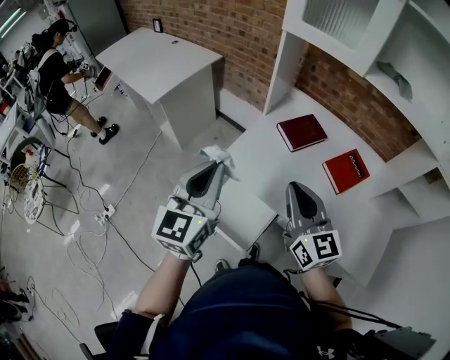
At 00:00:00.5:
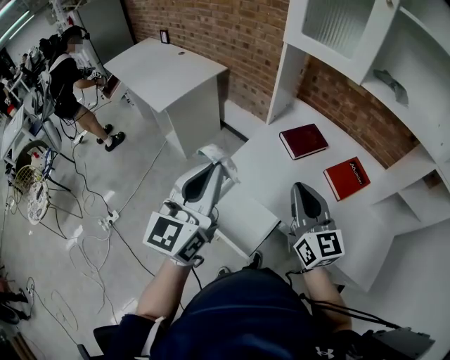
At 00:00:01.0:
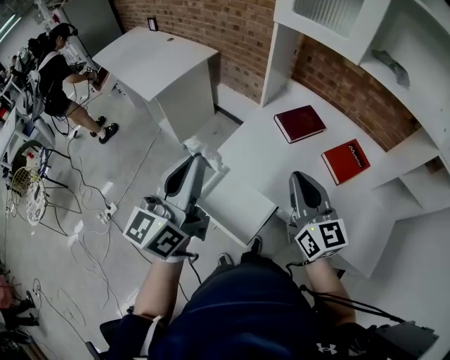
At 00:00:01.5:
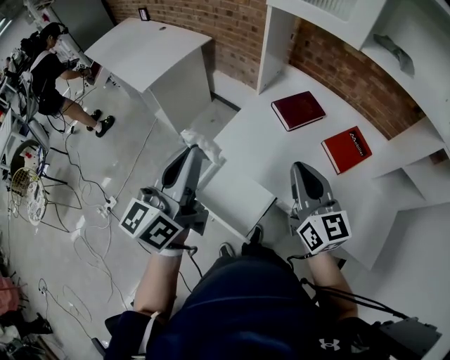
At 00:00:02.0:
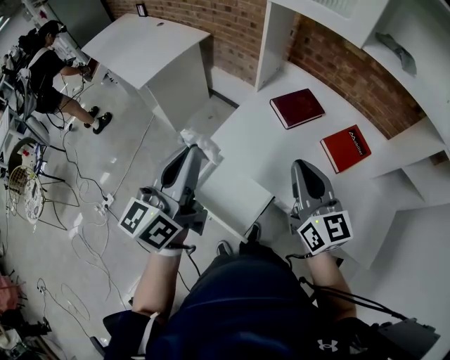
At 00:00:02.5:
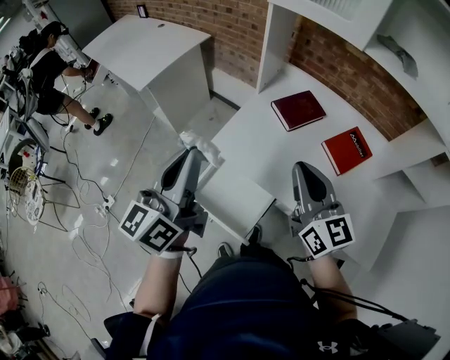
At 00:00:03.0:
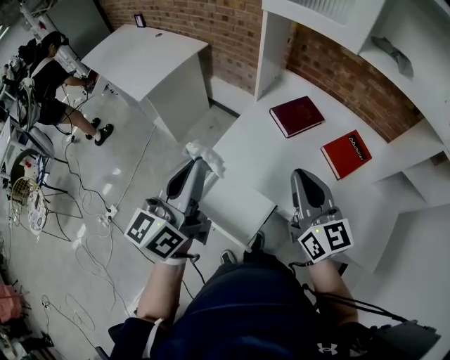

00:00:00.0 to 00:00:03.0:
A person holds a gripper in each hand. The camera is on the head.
00:00:00.0 to 00:00:01.5: The left gripper turns by roughly 30 degrees.
00:00:01.5 to 00:00:03.0: The grippers make only small movements.

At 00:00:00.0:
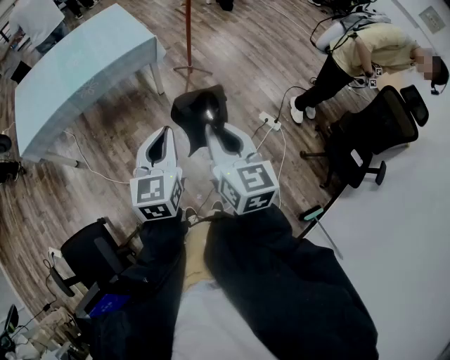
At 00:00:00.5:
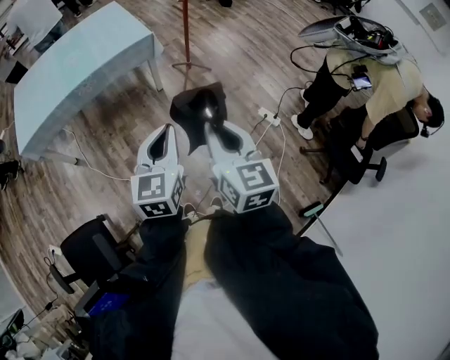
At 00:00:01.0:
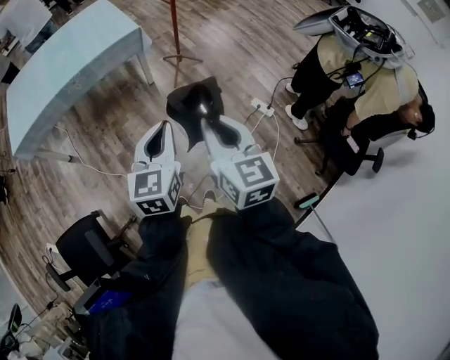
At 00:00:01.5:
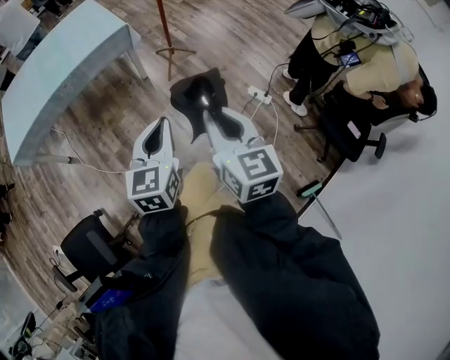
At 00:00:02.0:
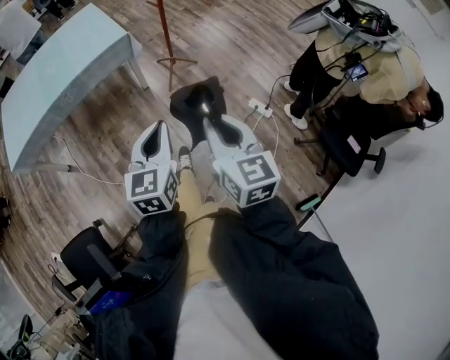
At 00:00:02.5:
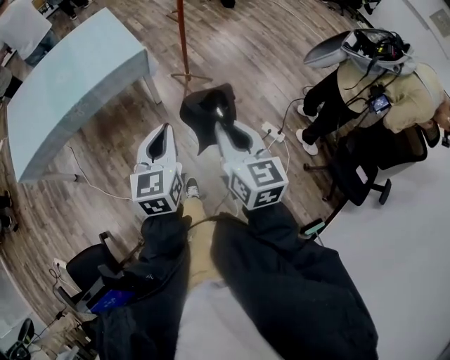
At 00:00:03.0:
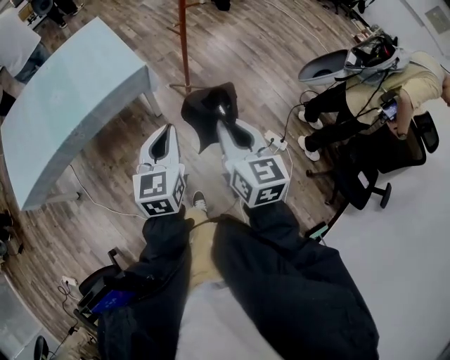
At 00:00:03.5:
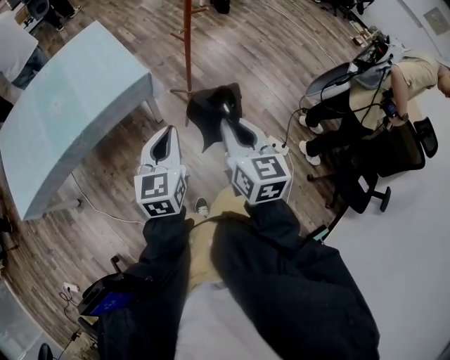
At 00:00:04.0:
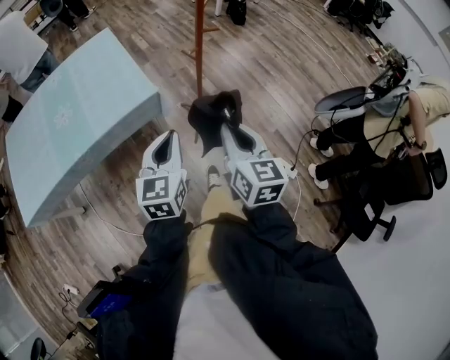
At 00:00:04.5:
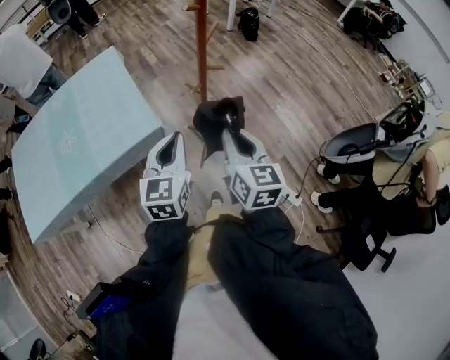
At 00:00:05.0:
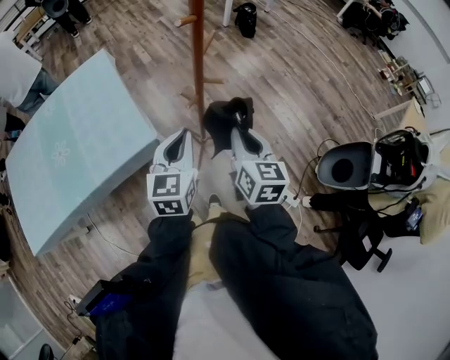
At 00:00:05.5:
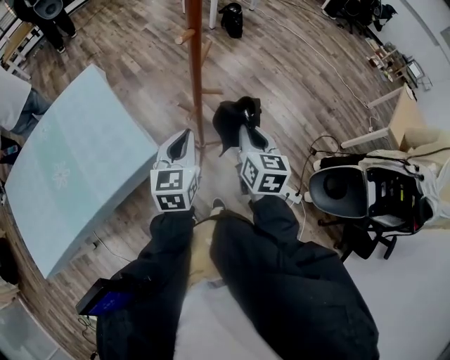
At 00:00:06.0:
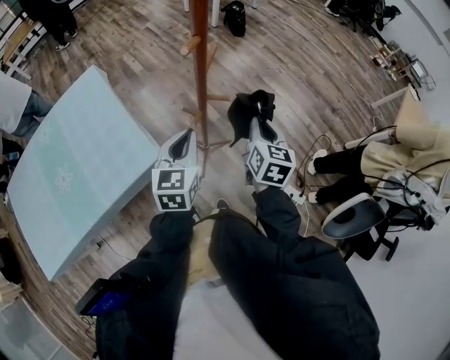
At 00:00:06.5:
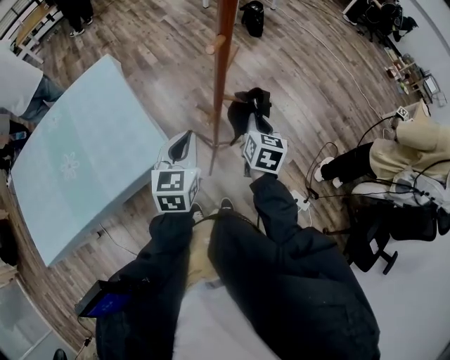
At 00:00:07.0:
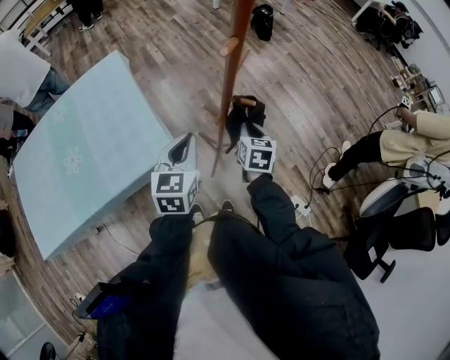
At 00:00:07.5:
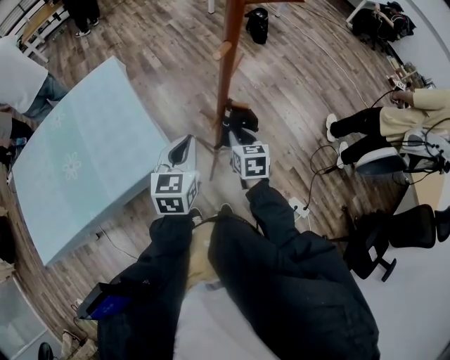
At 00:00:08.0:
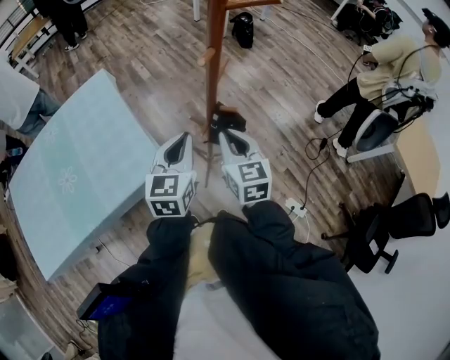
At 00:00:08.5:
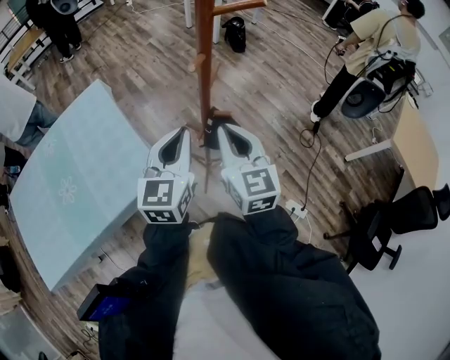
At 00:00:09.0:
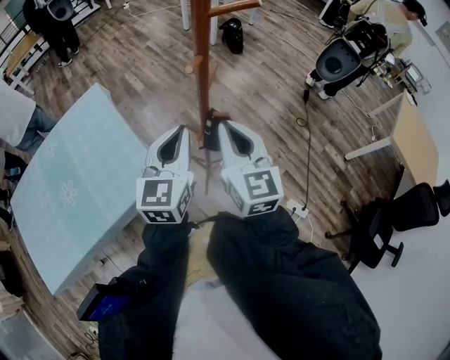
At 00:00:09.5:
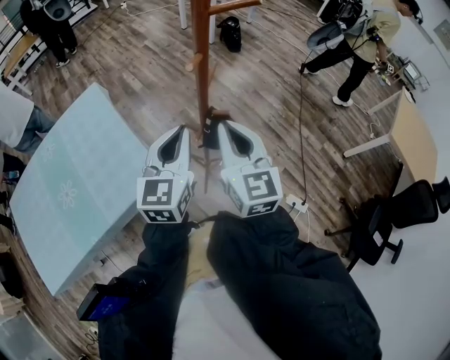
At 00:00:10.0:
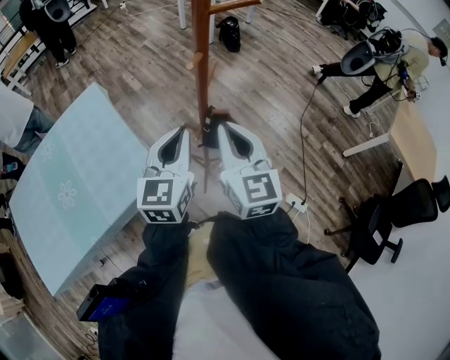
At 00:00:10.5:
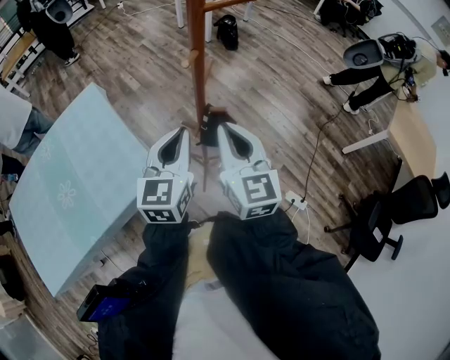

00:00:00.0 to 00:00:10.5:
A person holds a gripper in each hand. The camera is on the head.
00:00:00.0 to 00:00:02.0: The grippers both shift to the right by approximately 10 cm.
00:00:02.0 to 00:00:04.0: The two grippers travel together, forward, approximately 40 cm.
00:00:04.0 to 00:00:06.5: Both grippers travel together forward, some 35 cm. The right gripper rotates some 20 degrees.
00:00:06.5 to 00:00:08.5: The left gripper is displaced upward by some 10 cm, while the right gripper moves upward, to the left and backward, approximately 20 cm, and changes its angle by roughly 30 degrees.
00:00:08.5 to 00:00:10.5: The grippers move only a little.

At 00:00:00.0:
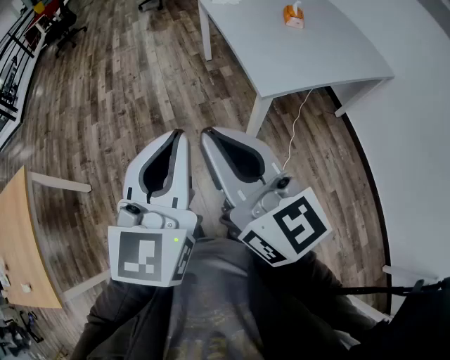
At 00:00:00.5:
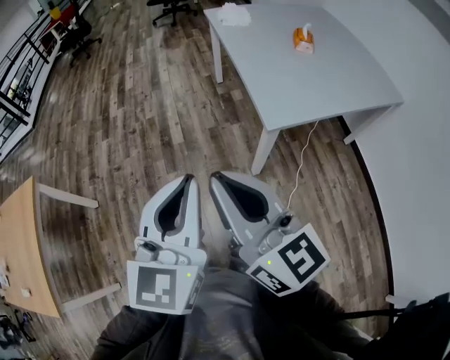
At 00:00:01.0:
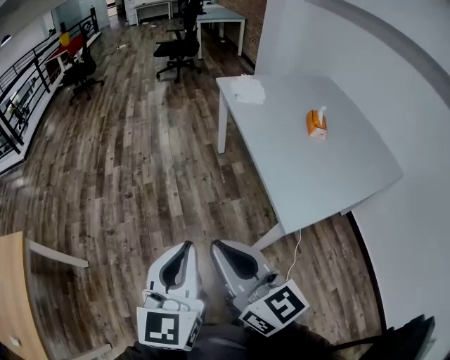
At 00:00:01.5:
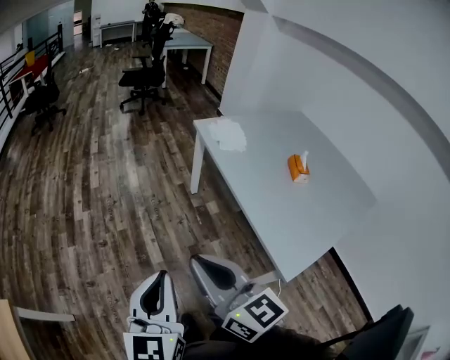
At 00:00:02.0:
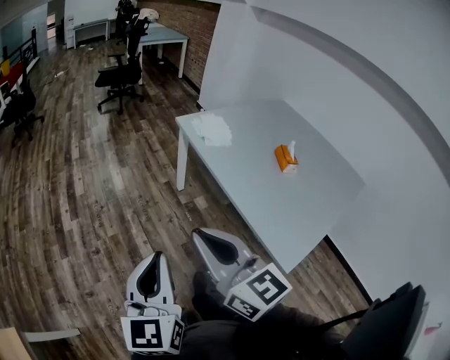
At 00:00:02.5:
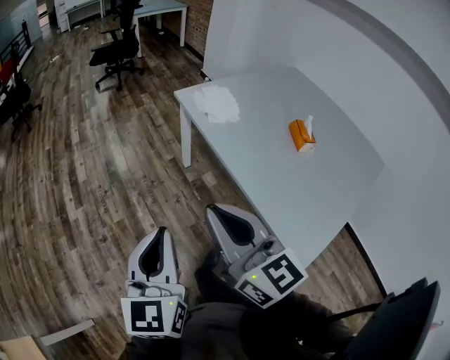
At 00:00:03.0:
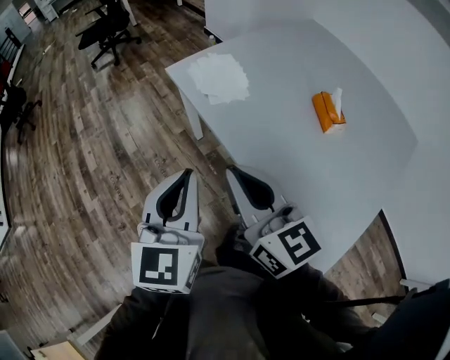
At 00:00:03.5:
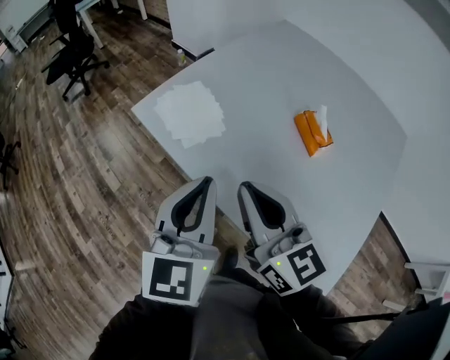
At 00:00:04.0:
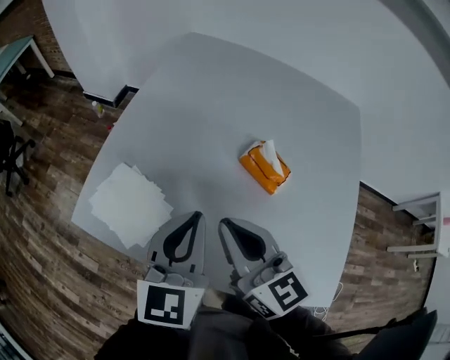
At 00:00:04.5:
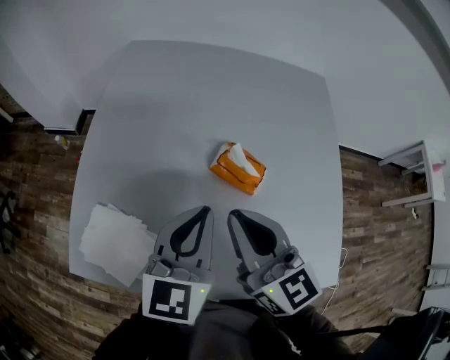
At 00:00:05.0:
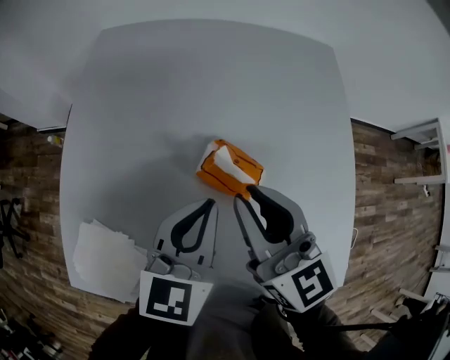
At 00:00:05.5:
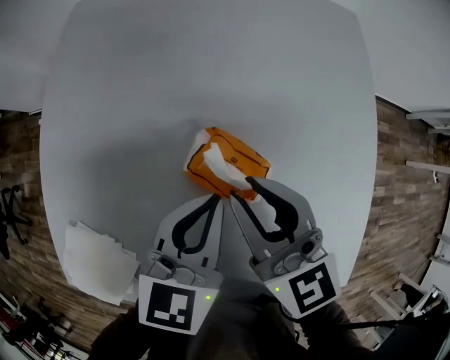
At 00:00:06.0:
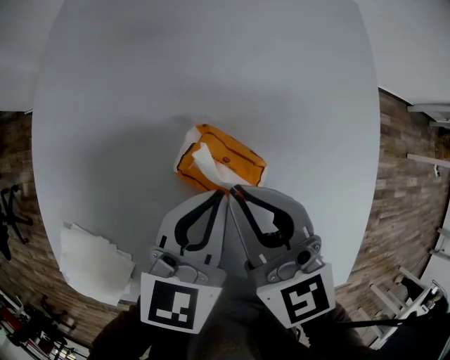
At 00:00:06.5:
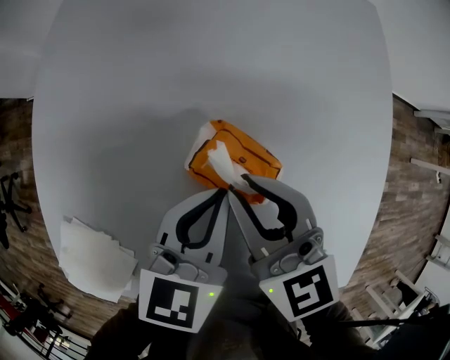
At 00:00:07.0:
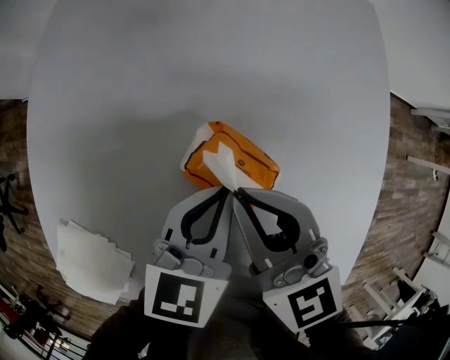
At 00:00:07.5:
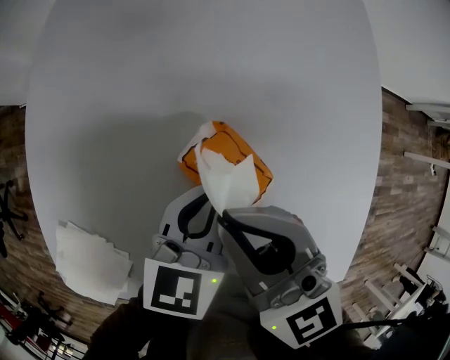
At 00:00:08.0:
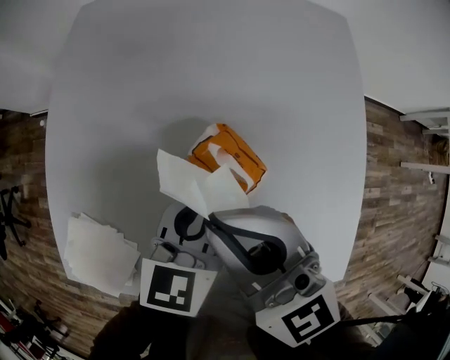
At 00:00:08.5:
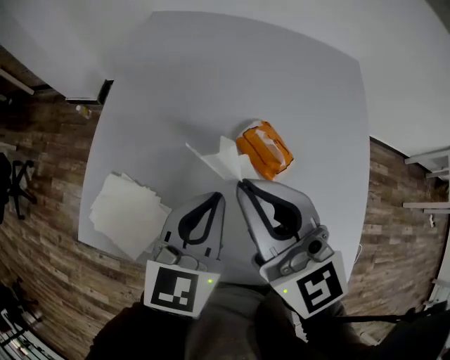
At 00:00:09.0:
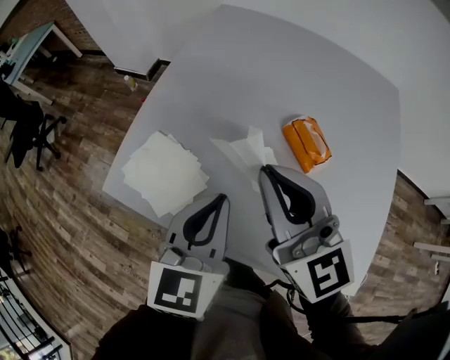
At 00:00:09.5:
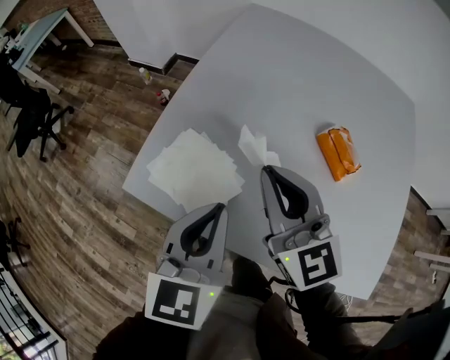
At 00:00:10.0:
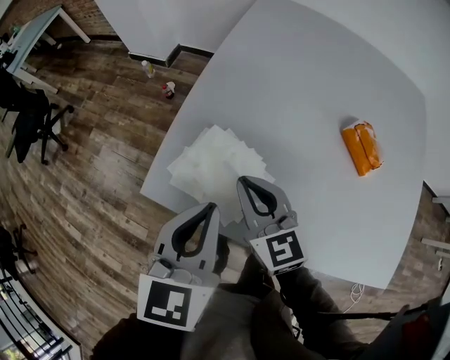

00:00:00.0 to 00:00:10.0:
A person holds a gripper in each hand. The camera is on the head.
00:00:00.0 to 00:00:02.0: The pair of grippers is taken forward, some 50 cm.
00:00:02.0 to 00:00:04.0: The pair of grippers is taken roughly 70 cm. The right gripper turns by some 50 degrees; the left gripper turns by approximately 60 degrees.
00:00:04.0 to 00:00:06.0: The right gripper shifts about 30 cm forward, to the right and downward, and turns by some 20 degrees, while the left gripper moves to the right, forward and downward, roughly 30 cm, and changes its angle by some 30 degrees.
00:00:06.0 to 00:00:08.0: The right gripper goes roughly 15 cm upward, to the left and backward.
00:00:08.0 to 00:00:10.0: The two grippers go roughly 40 cm to the left. The left gripper rotates about 20 degrees.

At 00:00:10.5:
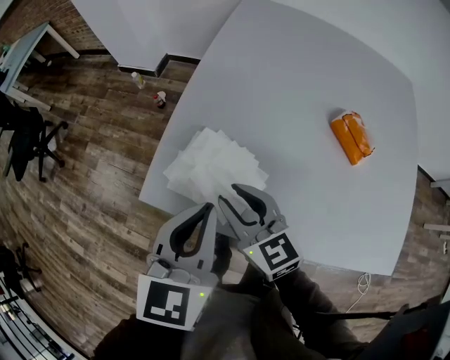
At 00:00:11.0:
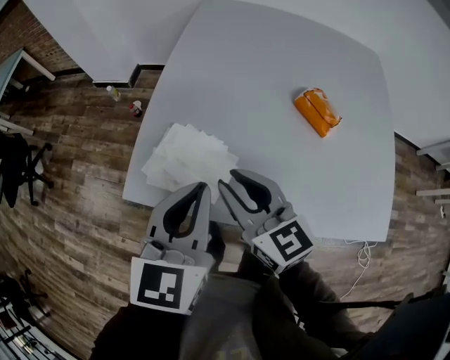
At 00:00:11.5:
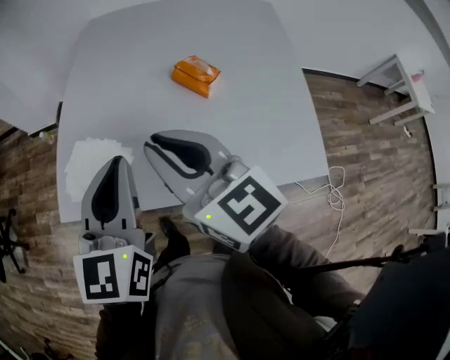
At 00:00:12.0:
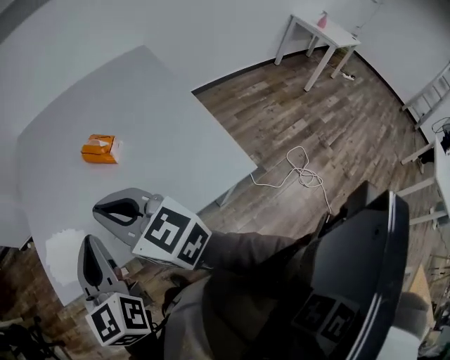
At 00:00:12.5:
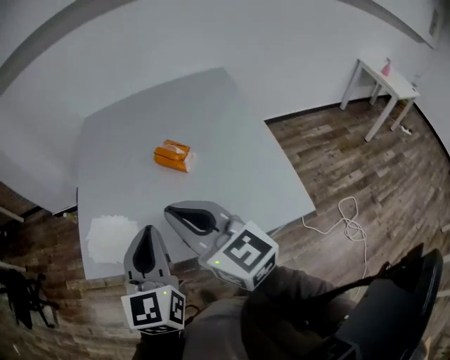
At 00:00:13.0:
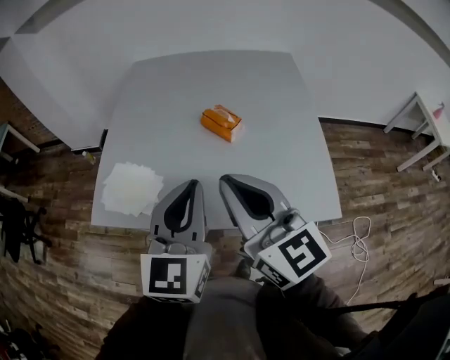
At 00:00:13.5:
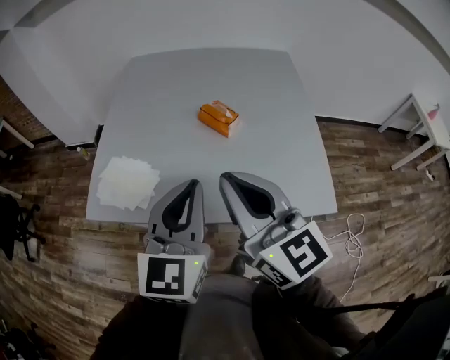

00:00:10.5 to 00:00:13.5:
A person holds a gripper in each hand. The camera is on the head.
00:00:10.5 to 00:00:12.0: The left gripper travels to the right, backward and upward by about 35 cm; the right gripper heads to the right, upward and backward, covering some 40 cm, rotates some 20 degrees, and closes its fingers.
00:00:12.0 to 00:00:13.5: The grippers make only small movements.
